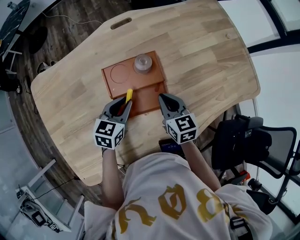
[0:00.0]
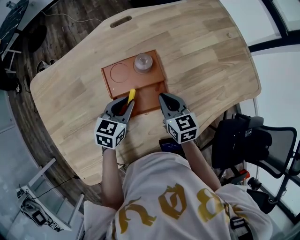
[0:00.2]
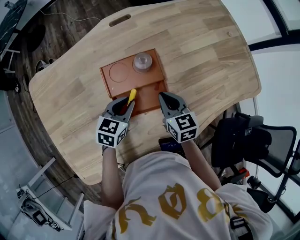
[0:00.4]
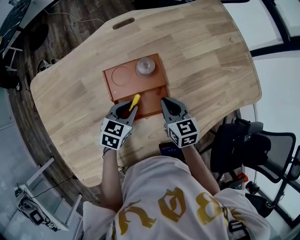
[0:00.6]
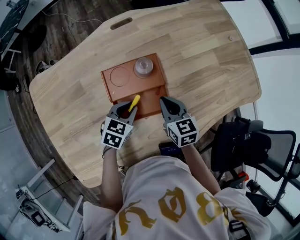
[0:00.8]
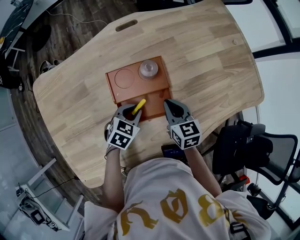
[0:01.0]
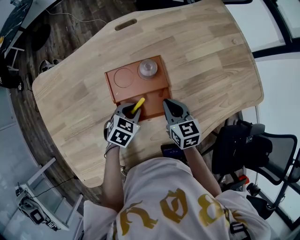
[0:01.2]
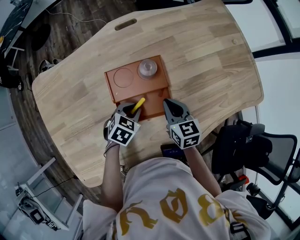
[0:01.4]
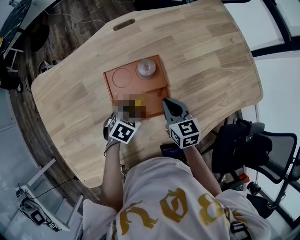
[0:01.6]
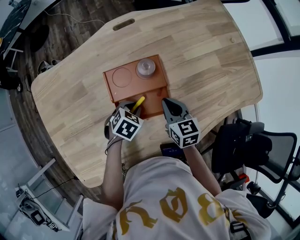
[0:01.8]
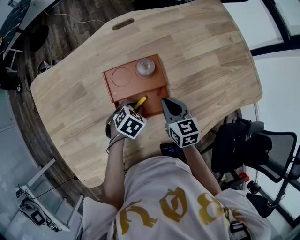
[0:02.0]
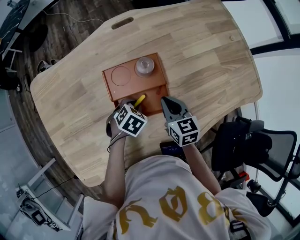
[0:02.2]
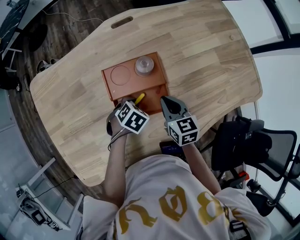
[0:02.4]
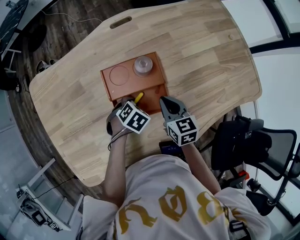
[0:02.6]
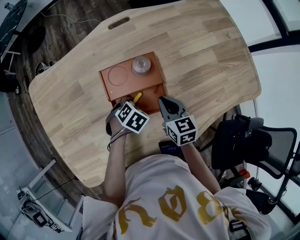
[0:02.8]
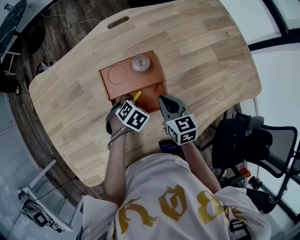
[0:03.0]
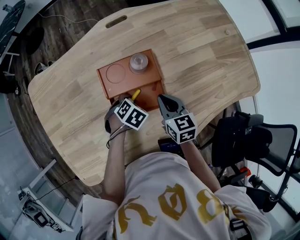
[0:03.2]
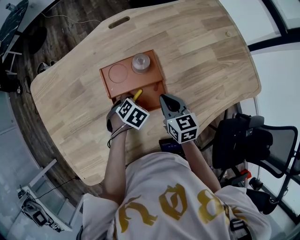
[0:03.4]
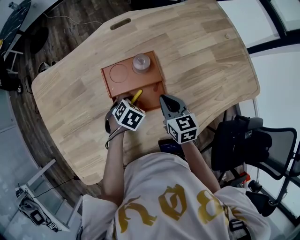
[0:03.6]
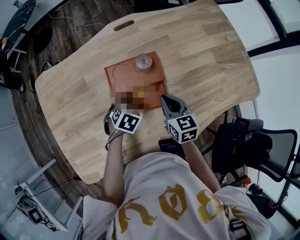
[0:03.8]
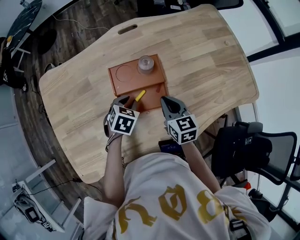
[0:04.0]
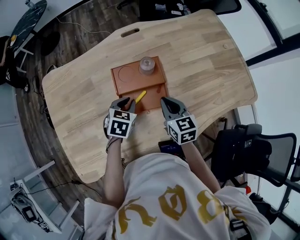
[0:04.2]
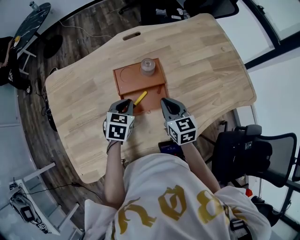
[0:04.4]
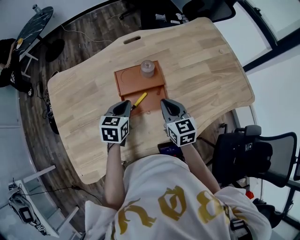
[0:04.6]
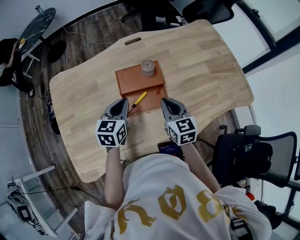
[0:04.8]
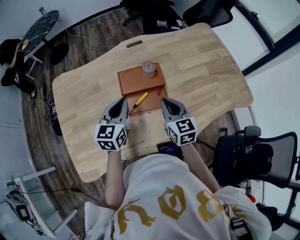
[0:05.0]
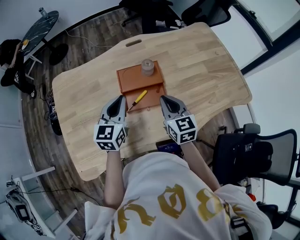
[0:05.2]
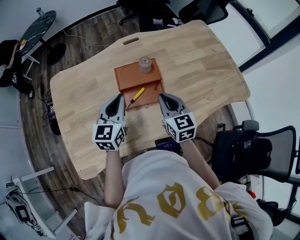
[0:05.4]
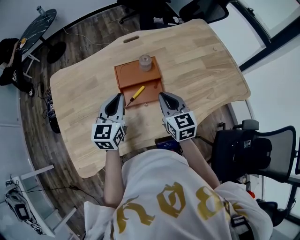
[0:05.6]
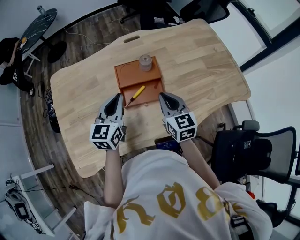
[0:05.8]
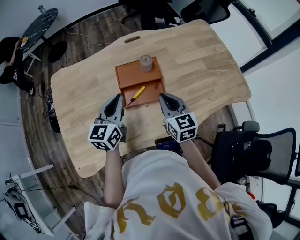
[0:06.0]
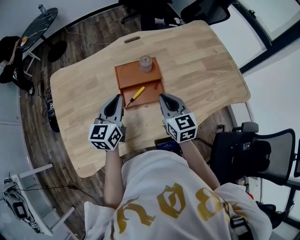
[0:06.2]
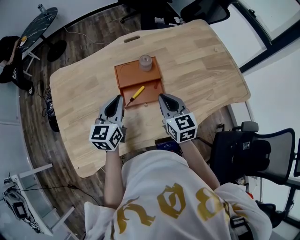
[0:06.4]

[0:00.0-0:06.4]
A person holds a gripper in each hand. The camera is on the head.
0:00.0 to 0:01.6: The left gripper goes approximately 5 cm downward, and rotates some 30 degrees.
0:01.6 to 0:03.2: There are only small adjustments of the grippers.
0:03.2 to 0:04.8: The right gripper travels upward by roughly 10 cm. The left gripper goes approximately 20 cm upward, and tilts its fingers approximately 50 degrees upward.
0:04.8 to 0:06.4: The left gripper moves upward, about 5 cm.

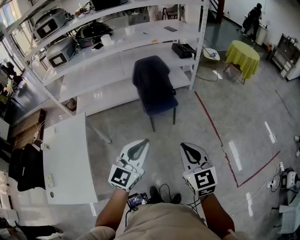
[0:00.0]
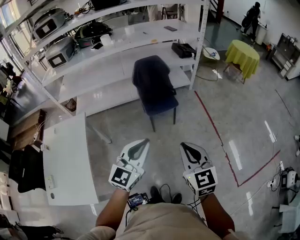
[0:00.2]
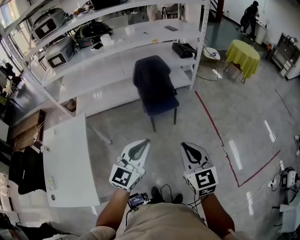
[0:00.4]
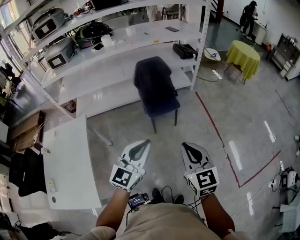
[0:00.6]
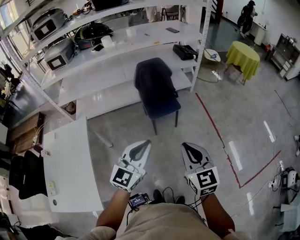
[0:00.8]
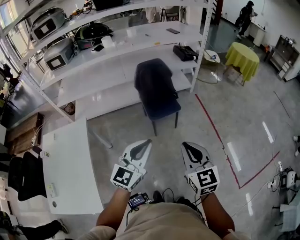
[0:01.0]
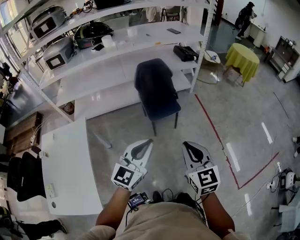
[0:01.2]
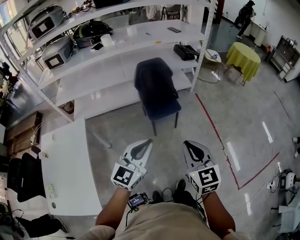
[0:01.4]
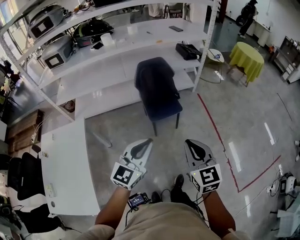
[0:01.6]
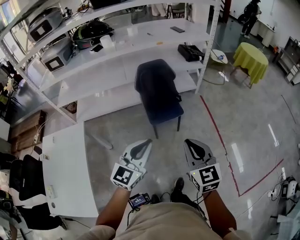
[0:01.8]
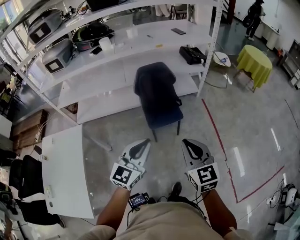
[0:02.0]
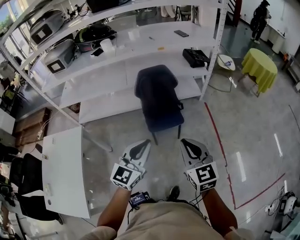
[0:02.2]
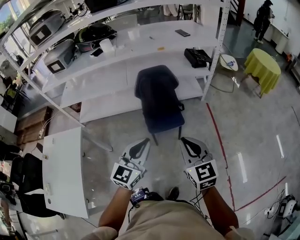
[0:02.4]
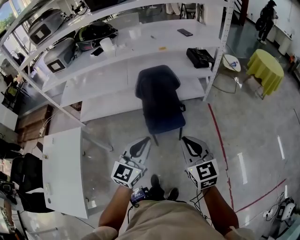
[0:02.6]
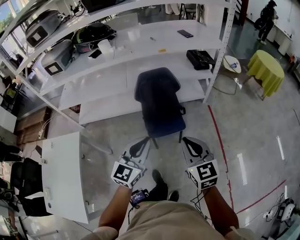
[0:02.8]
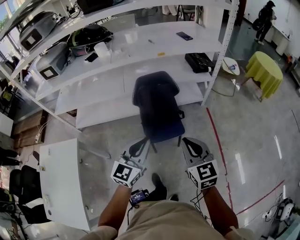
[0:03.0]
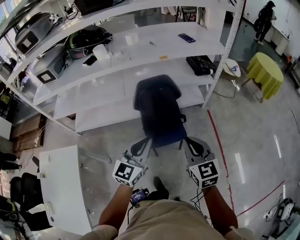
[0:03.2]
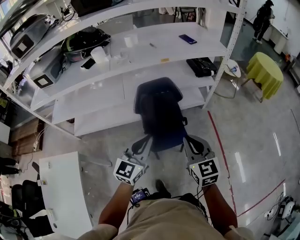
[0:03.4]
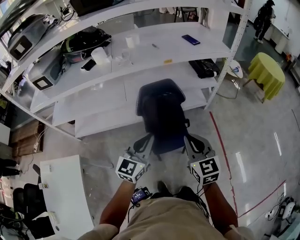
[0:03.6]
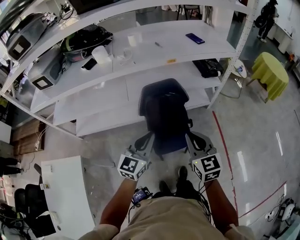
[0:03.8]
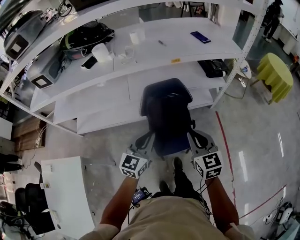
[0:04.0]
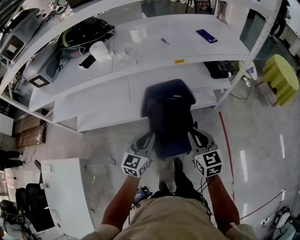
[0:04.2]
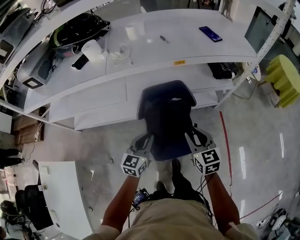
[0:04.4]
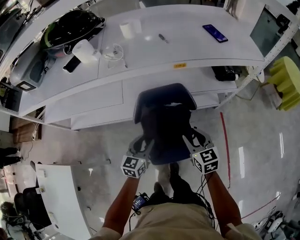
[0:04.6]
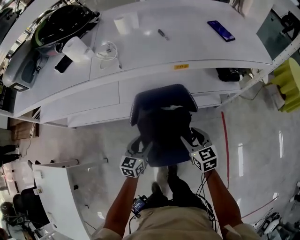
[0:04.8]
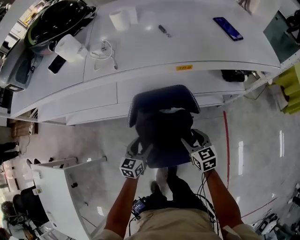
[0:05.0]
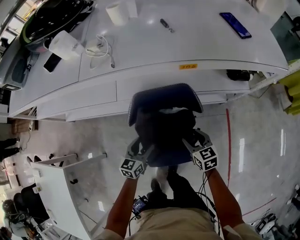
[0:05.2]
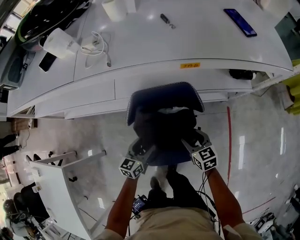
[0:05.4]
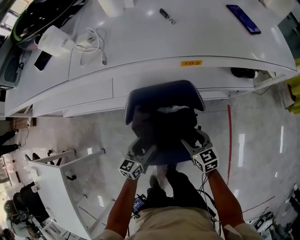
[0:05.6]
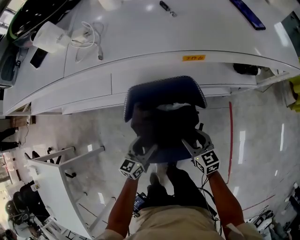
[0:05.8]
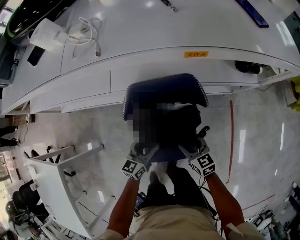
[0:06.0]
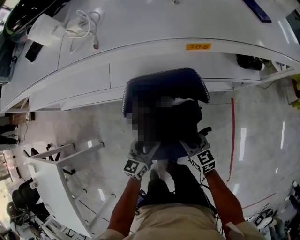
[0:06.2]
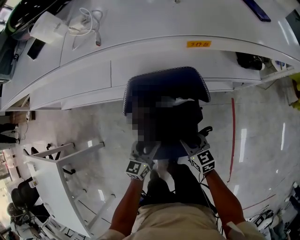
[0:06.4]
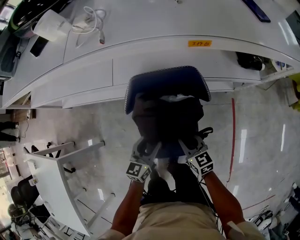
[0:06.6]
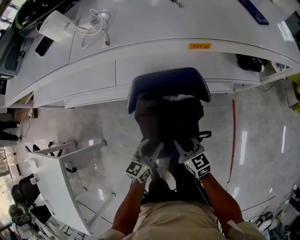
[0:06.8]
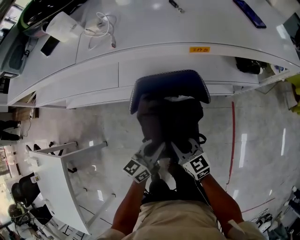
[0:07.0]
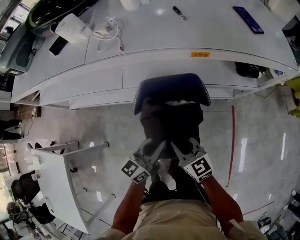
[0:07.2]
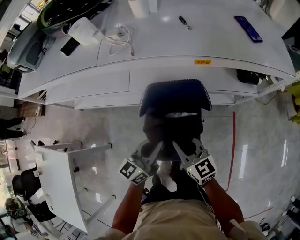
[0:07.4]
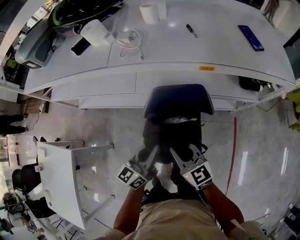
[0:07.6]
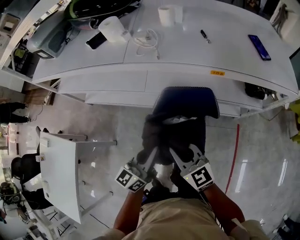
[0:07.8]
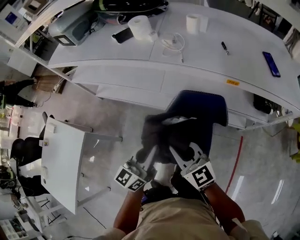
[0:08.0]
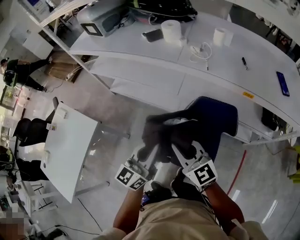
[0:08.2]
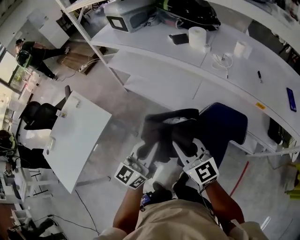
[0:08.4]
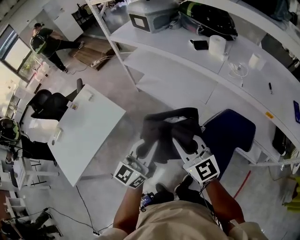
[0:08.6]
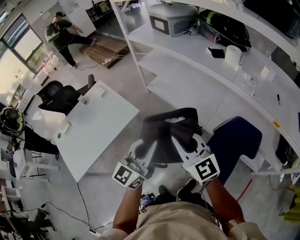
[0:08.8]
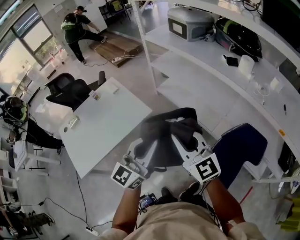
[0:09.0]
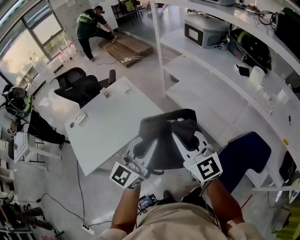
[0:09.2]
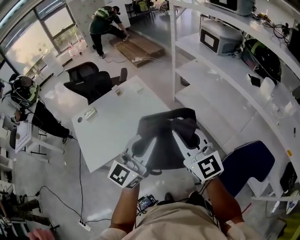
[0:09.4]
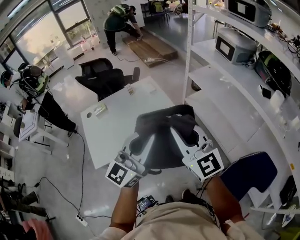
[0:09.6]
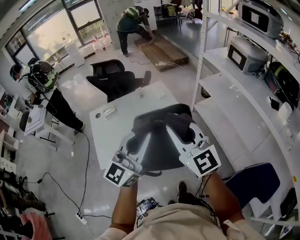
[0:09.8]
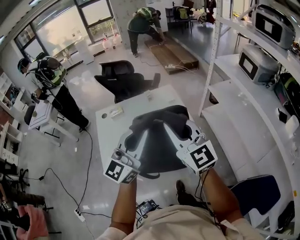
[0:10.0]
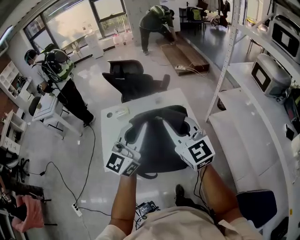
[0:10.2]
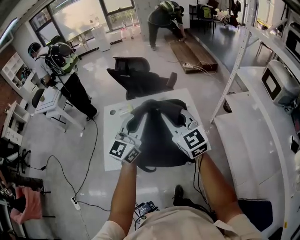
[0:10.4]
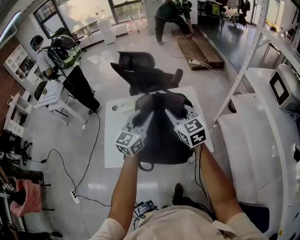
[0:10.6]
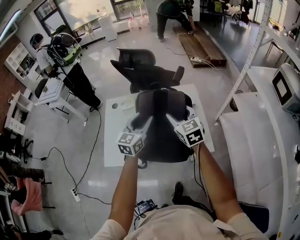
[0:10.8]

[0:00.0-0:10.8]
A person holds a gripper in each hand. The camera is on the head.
0:00.0 to 0:01.6: Both grippers move forward, about 10 cm.
0:01.6 to 0:03.0: The grippers both shift forward by roughly 30 cm.
0:03.0 to 0:04.6: Both grippers travel together forward and downward, some 40 cm. The right gripper opens. Meanwhile the left gripper turns by approximately 20 degrees, and opens its fingers.
0:04.6 to 0:06.2: The grippers both shift downward by approximately 20 cm. The left gripper opens.
0:06.2 to 0:07.8: The left gripper travels upward by some 25 cm, rotates some 20 degrees, and closes its fingers, while the right gripper goes roughly 30 cm upward and to the left, swivels roughly 30 degrees, and closes.
0:07.8 to 0:09.2: The pair of grippers is taken roughly 50 cm. The right gripper rotates some 40 degrees, while the left gripper swivels approximately 50 degrees.
0:09.2 to 0:10.8: Both grippers are carried roughly 50 cm. The right gripper turns by roughly 30 degrees, and opens its fingers. The left gripper changes its angle by roughly 50 degrees, and opens its fingers.

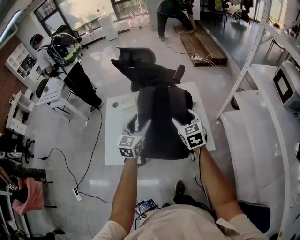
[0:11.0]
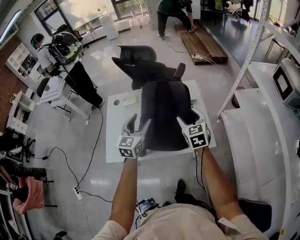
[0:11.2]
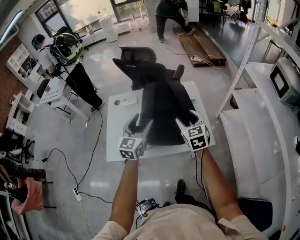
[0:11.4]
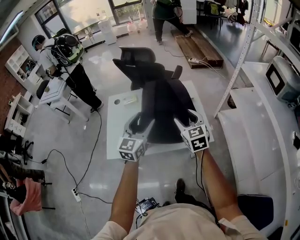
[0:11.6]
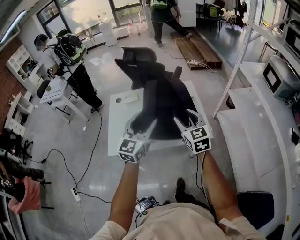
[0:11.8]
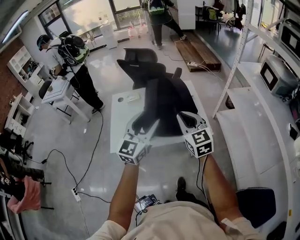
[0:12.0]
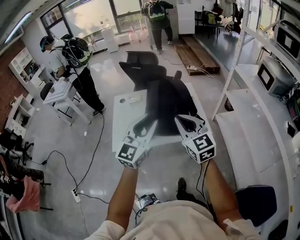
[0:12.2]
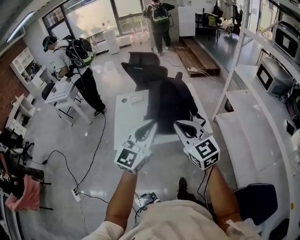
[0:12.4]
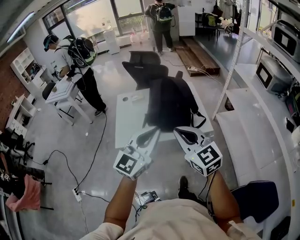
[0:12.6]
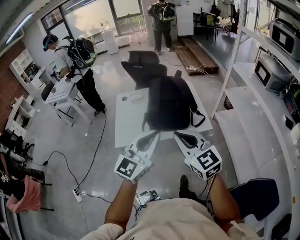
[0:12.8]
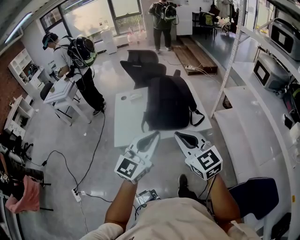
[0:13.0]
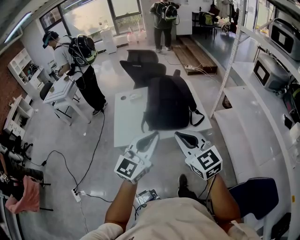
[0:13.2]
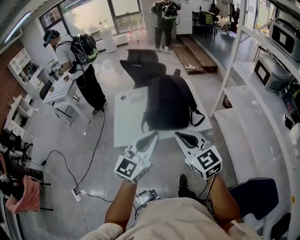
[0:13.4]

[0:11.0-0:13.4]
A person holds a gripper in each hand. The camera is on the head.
0:11.0 to 0:12.2: Both grippers travel together backward and upward, roughly 30 cm. The left gripper turns by approximately 20 degrees, and closes. The right gripper swivels roughly 20 degrees, and closes.
0:12.2 to 0:13.4: The grippers both shift backward by some 10 cm. The left gripper closes its fingers.

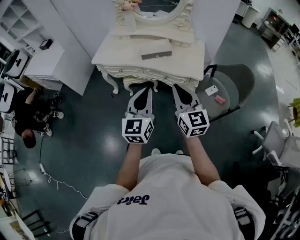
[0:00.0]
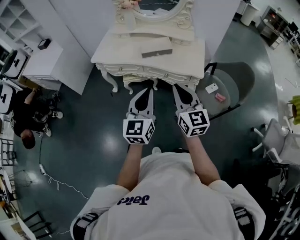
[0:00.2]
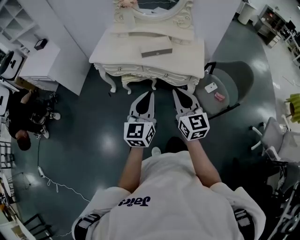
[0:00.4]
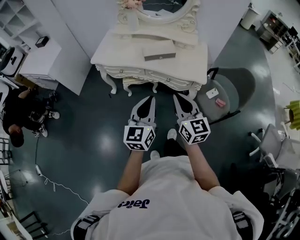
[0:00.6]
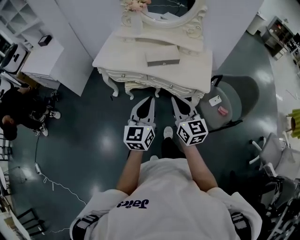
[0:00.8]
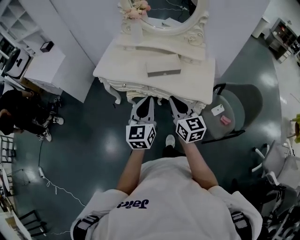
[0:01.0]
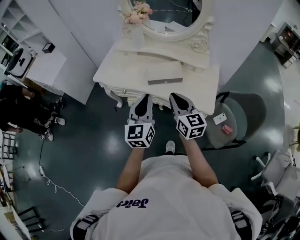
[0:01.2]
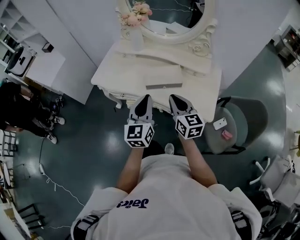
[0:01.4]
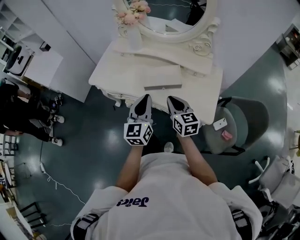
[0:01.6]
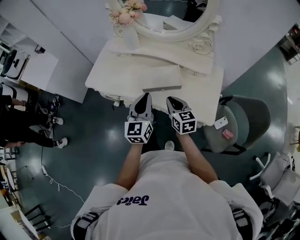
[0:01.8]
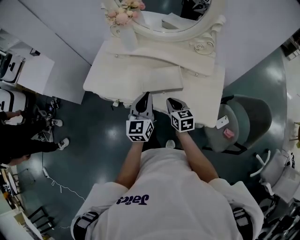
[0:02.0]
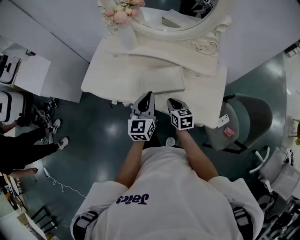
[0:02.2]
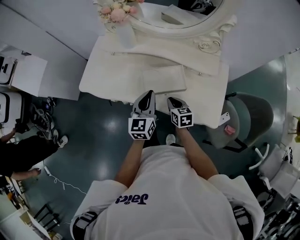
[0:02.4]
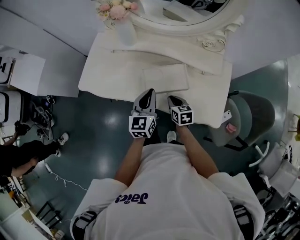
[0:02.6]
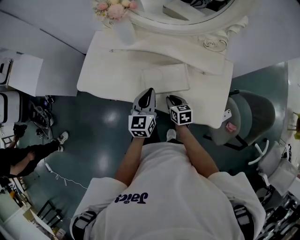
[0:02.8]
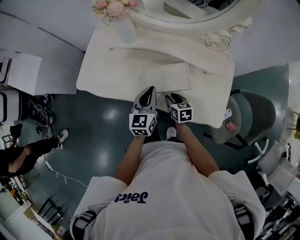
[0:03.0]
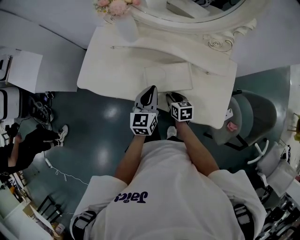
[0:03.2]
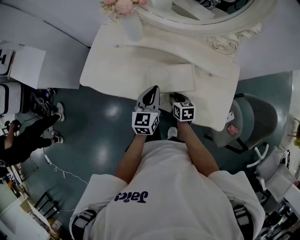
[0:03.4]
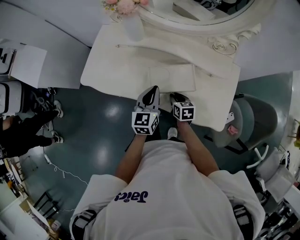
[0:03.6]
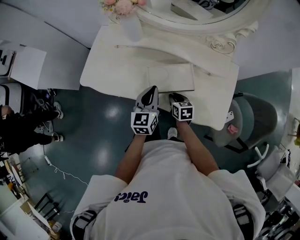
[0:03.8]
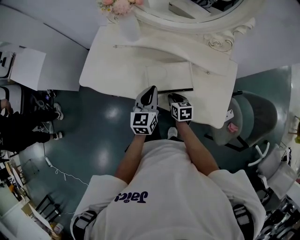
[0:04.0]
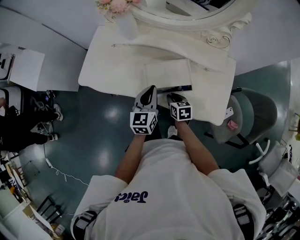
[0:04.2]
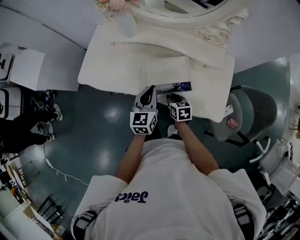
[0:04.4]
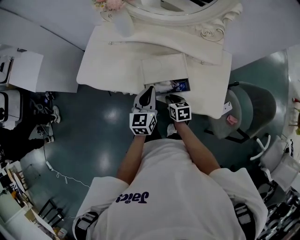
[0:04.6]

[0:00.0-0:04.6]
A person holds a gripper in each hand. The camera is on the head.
0:00.0 to 0:01.6: The right gripper travels forward and downward by roughly 35 cm, and changes its angle by about 20 degrees; the left gripper goes roughly 30 cm forward.
0:01.6 to 0:03.0: The left gripper travels forward and downward by some 20 cm, while the right gripper moves downward and forward, some 25 cm, changes its angle by some 30 degrees, and opens.
0:03.0 to 0:04.6: Both grippers travel together backward, about 5 cm.
